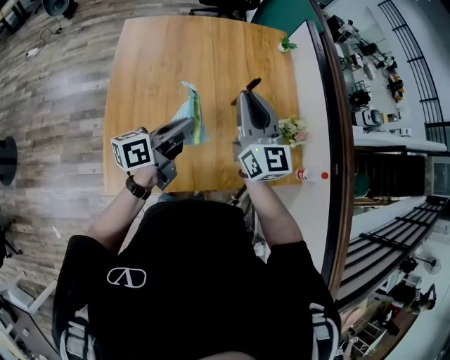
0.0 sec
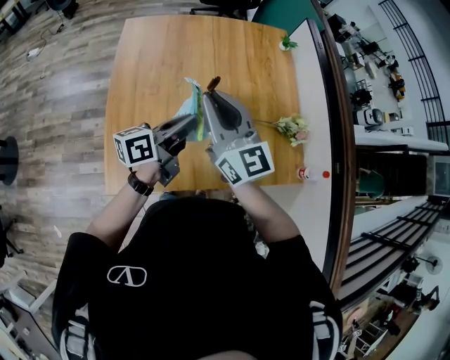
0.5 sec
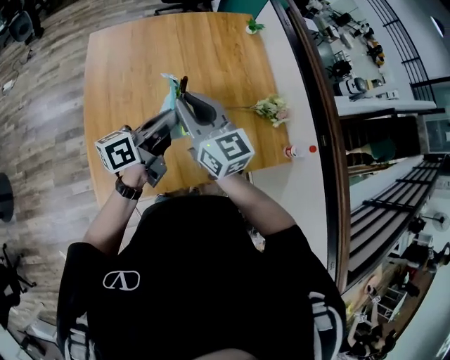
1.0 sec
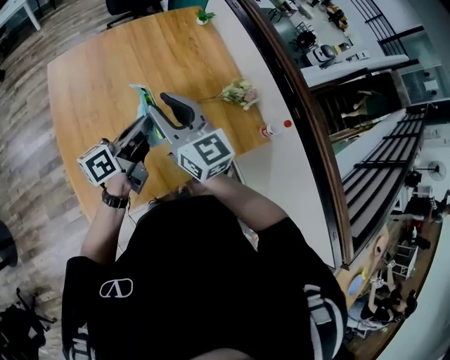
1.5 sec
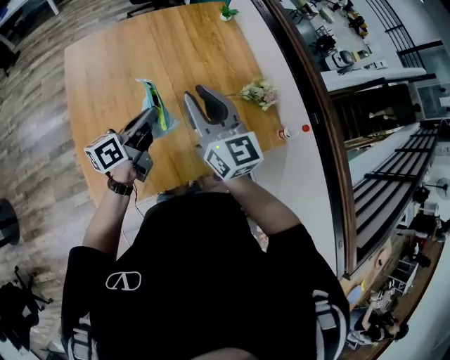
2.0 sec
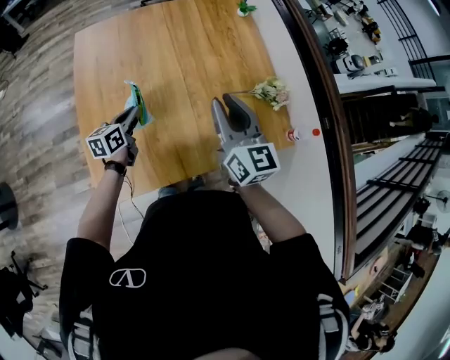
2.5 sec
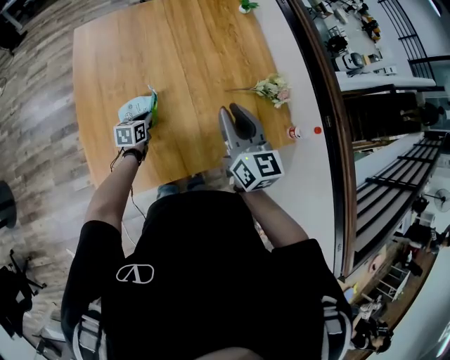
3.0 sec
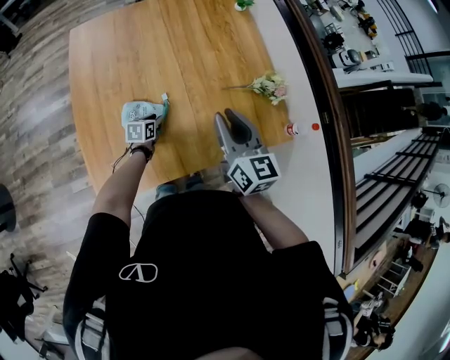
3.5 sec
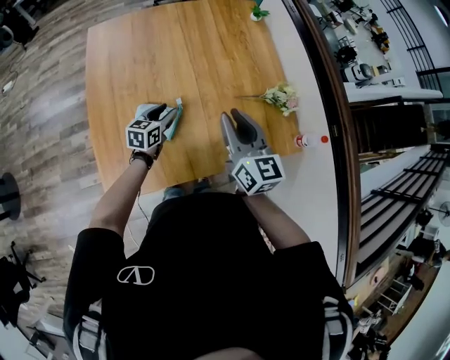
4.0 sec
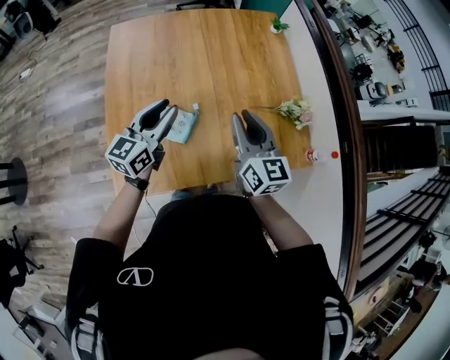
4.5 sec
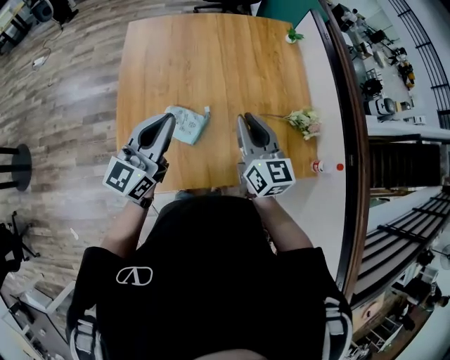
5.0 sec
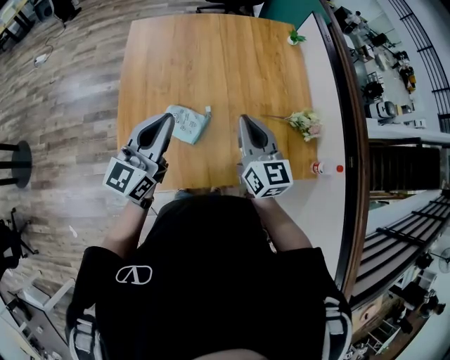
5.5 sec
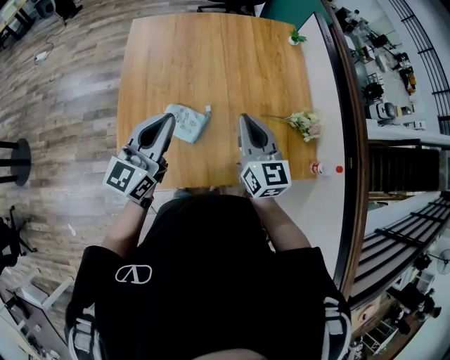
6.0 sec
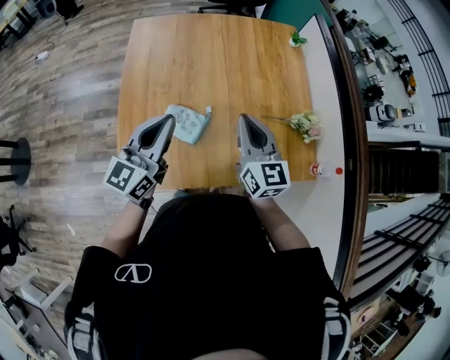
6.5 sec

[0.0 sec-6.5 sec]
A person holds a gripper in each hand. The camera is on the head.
0.0 sec to 2.0 sec: The right gripper reaches some 10 cm to the left, then returns.
2.0 sec to 4.5 sec: The right gripper is displaced downward by roughly 5 cm, while the left gripper is displaced to the left by about 5 cm, travels downward and back again, about 30 cm each way, and changes its angle by about 40 degrees.
4.5 sec to 6.5 sec: The left gripper heads upward and backward, covering about 10 cm.

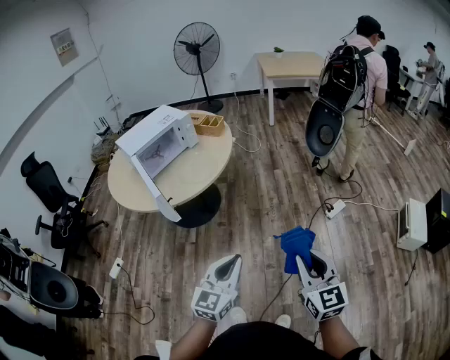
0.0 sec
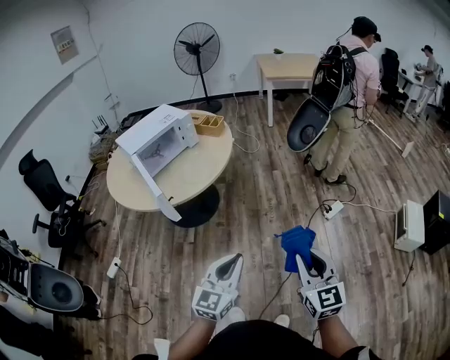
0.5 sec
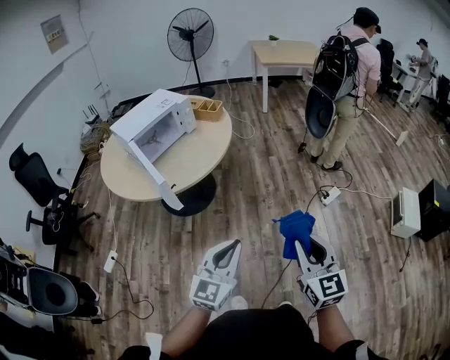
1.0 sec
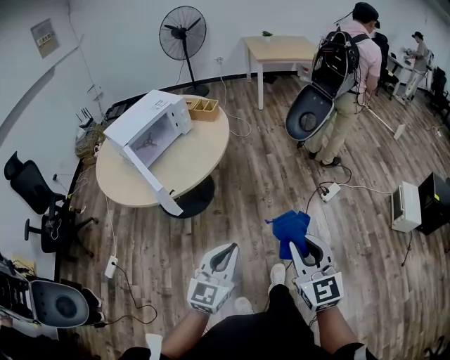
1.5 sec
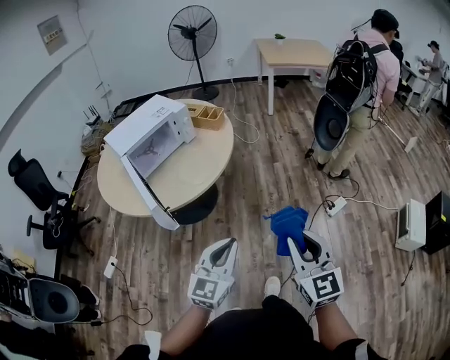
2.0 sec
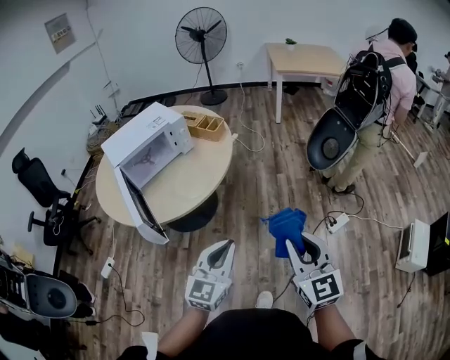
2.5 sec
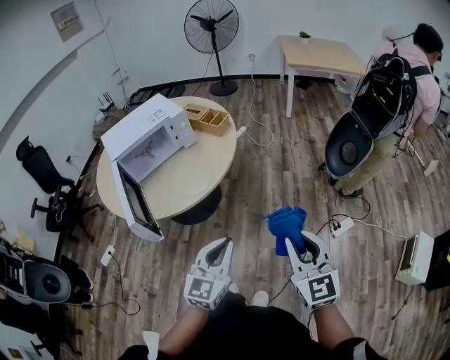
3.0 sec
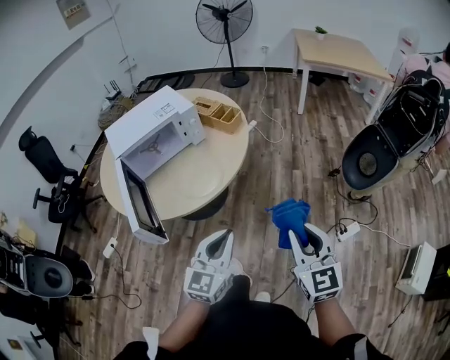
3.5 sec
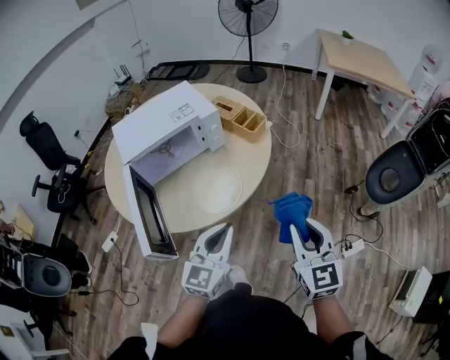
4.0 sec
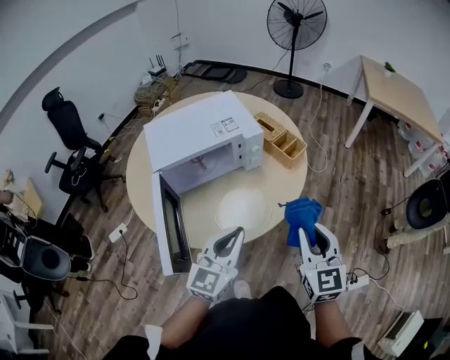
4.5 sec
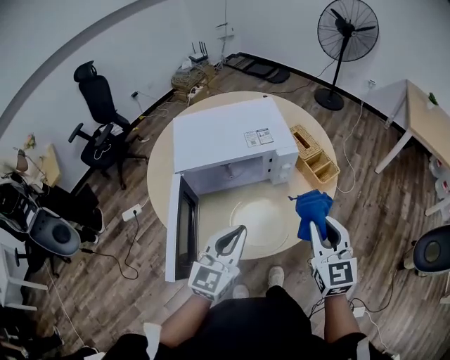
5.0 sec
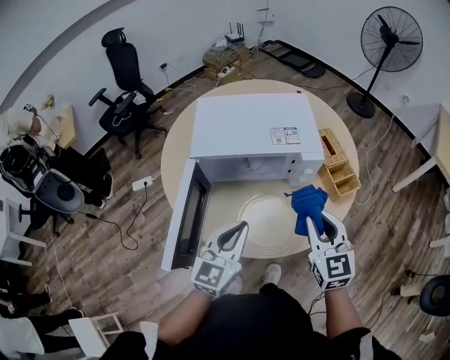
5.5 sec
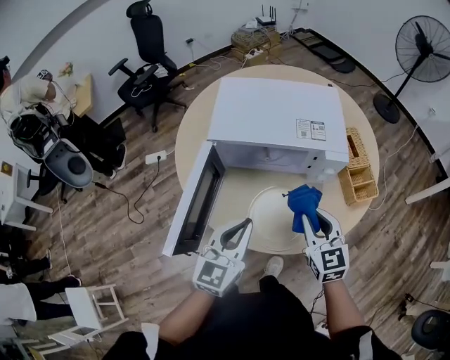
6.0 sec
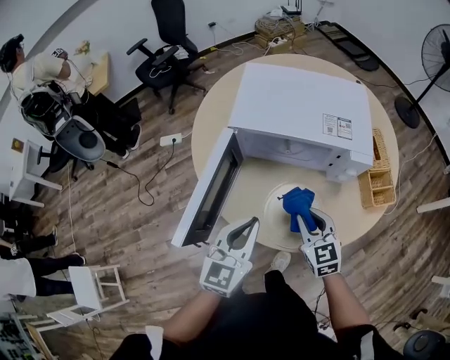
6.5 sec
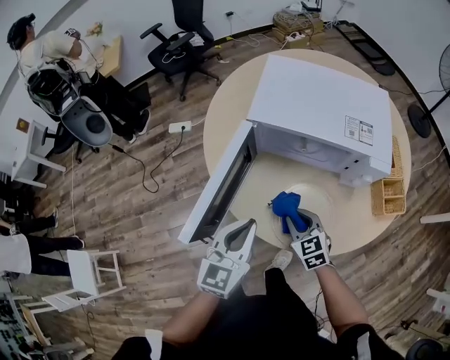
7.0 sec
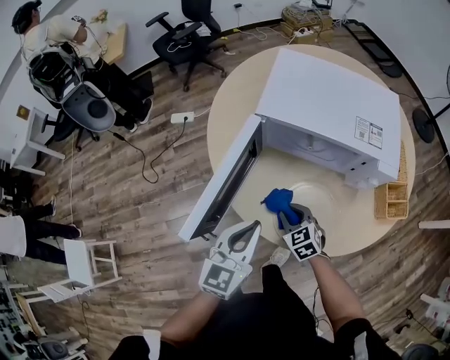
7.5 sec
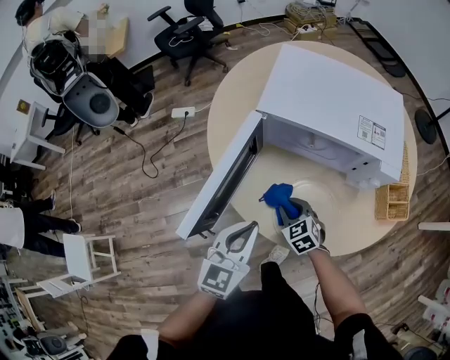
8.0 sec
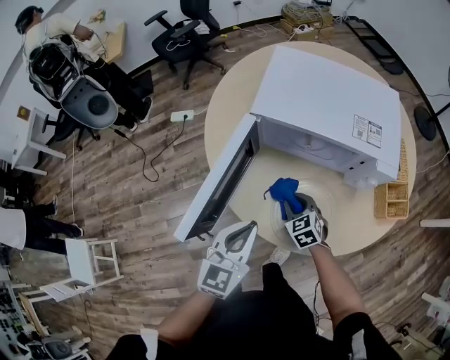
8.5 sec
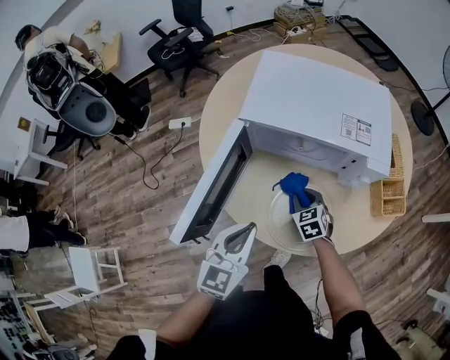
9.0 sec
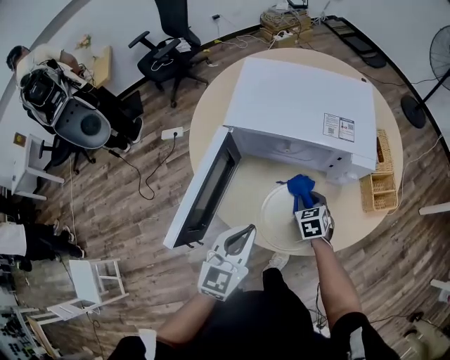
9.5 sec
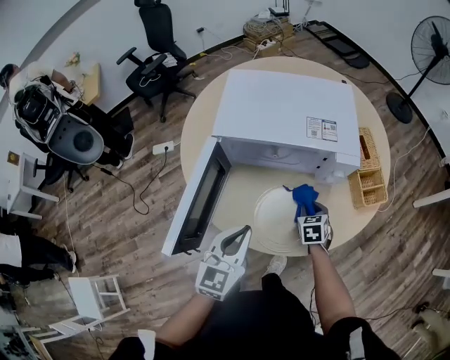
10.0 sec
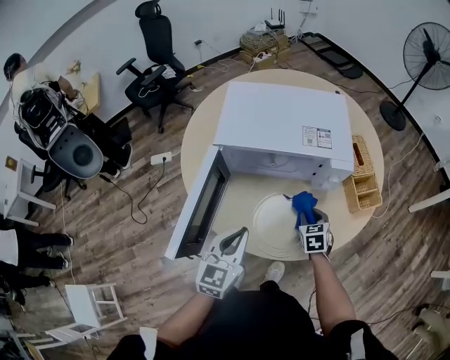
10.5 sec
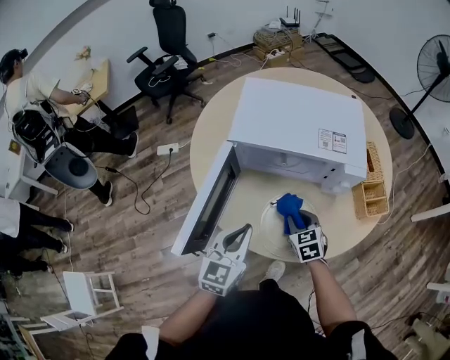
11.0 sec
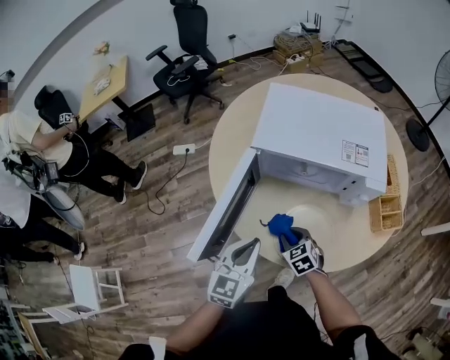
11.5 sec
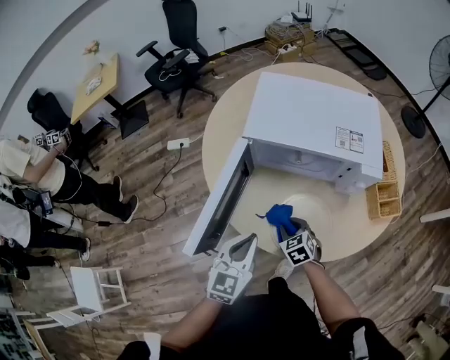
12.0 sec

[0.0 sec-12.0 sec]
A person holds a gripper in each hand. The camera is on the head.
0.0 sec to 2.0 sec: The two grippers go some 15 cm forward and to the left.
2.0 sec to 4.0 sec: Both grippers move forward, roughly 30 cm.
4.0 sec to 6.0 sec: The right gripper moves approximately 35 cm, and changes its angle by some 40 degrees, while the left gripper moves some 20 cm, and turns by approximately 40 degrees.
6.0 sec to 8.0 sec: The right gripper shifts approximately 25 cm downward and to the left, and swivels roughly 40 degrees. Meanwhile the left gripper is displaced to the left and downward by about 10 cm.
8.0 sec to 10.0 sec: The right gripper is displaced to the right by about 20 cm, and swivels approximately 40 degrees. Meanwhile the left gripper moves to the right, some 5 cm.
10.0 sec to 12.0 sec: The right gripper shifts about 15 cm to the left, and rotates some 30 degrees, while the left gripper is displaced to the left by approximately 5 cm.

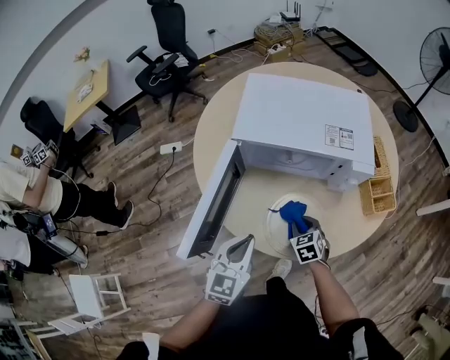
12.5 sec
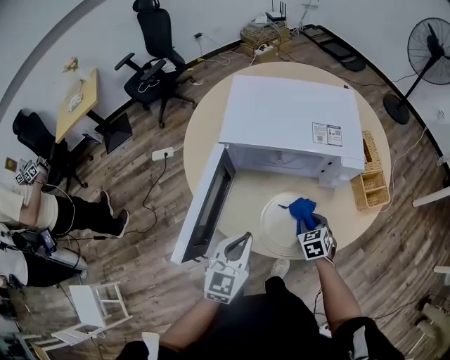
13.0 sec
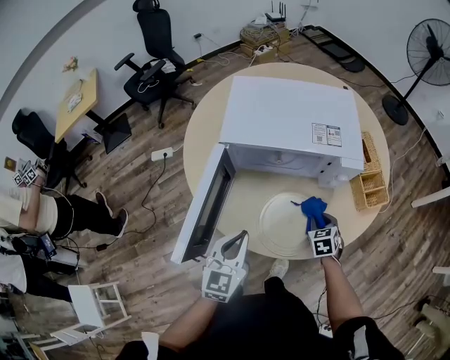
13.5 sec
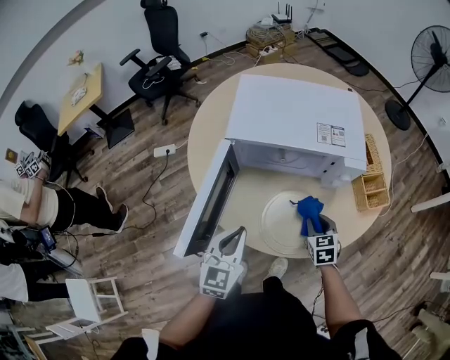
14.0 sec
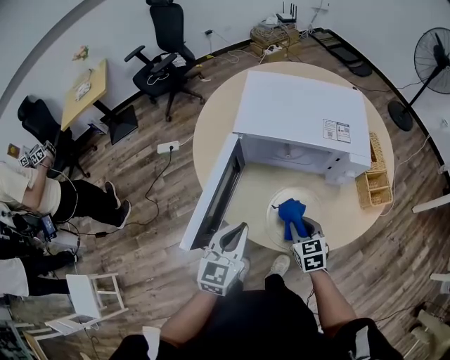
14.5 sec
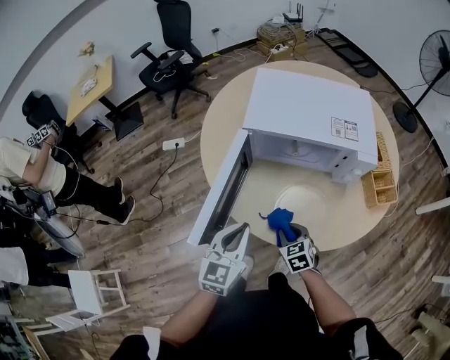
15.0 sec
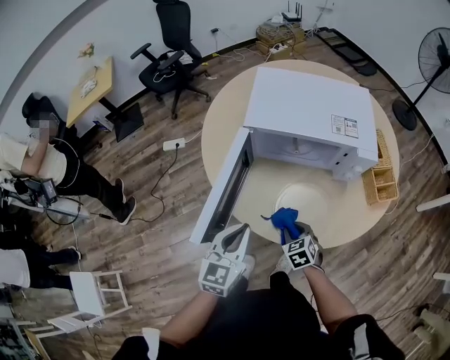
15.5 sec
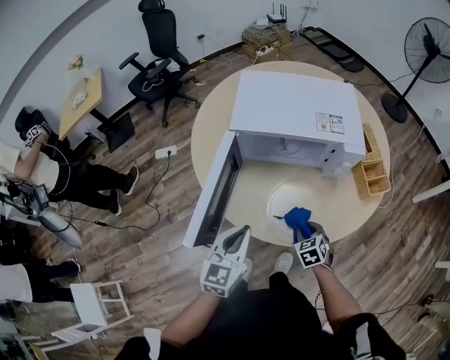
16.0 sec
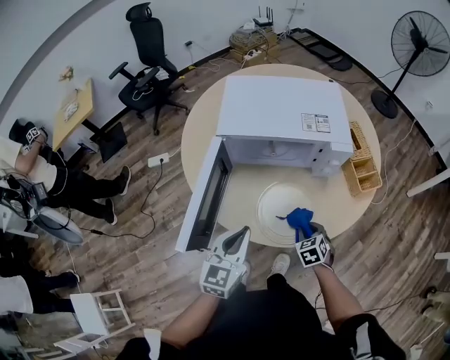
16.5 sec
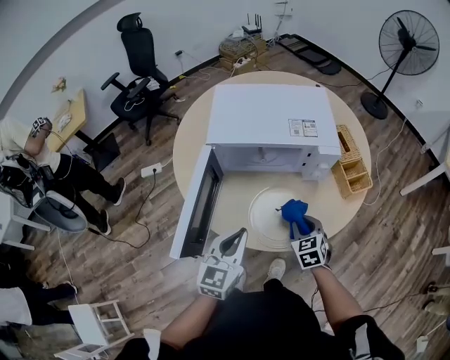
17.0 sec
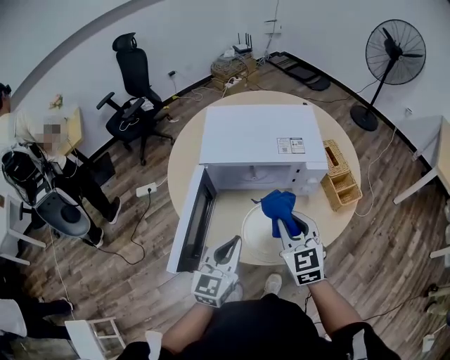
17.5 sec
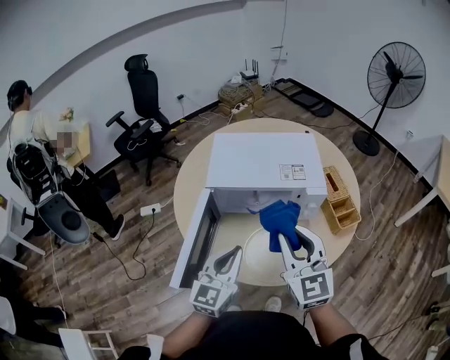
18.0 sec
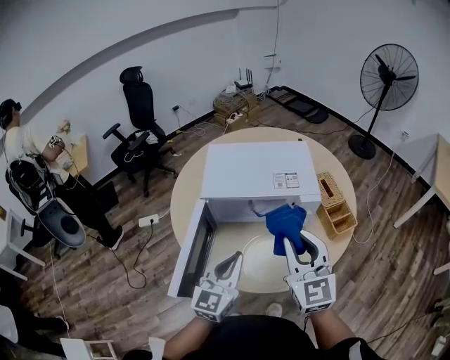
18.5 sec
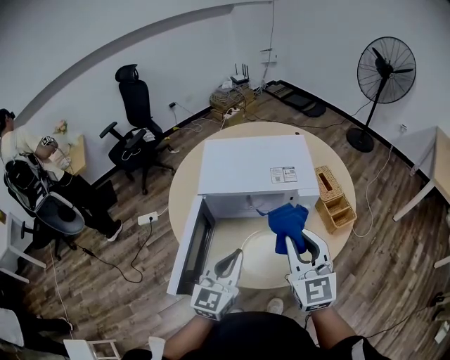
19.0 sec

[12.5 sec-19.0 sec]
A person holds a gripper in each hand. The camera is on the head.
12.5 sec to 14.5 sec: The right gripper moves upward, about 5 cm, and reaches about 10 cm to the right, then returns.
14.5 sec to 17.0 sec: The left gripper ends up approximately 5 cm from where it was. The right gripper goes some 5 cm to the right.
17.0 sec to 19.0 sec: The right gripper shifts roughly 30 cm upward, and points its fingers approximately 40 degrees further upward, while the left gripper is displaced upward by approximately 10 cm.

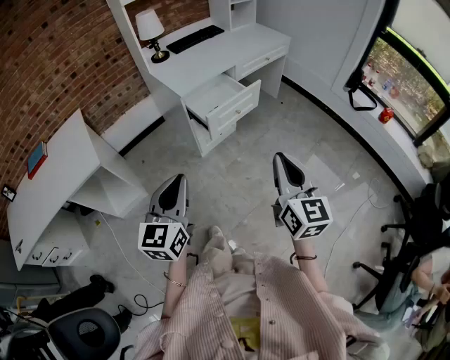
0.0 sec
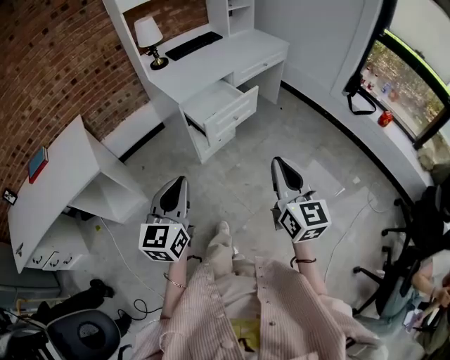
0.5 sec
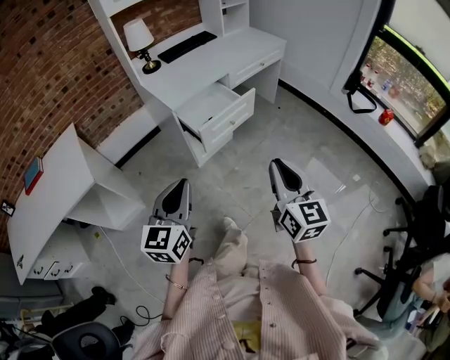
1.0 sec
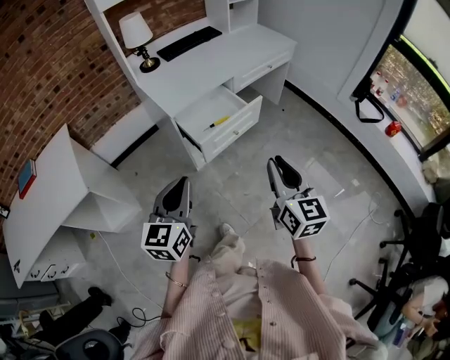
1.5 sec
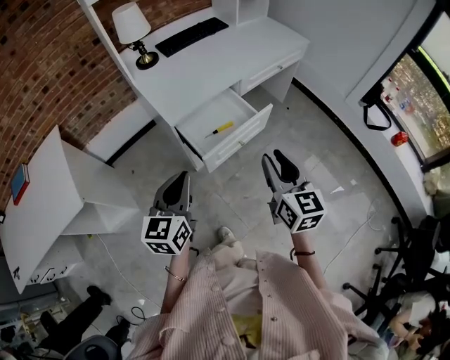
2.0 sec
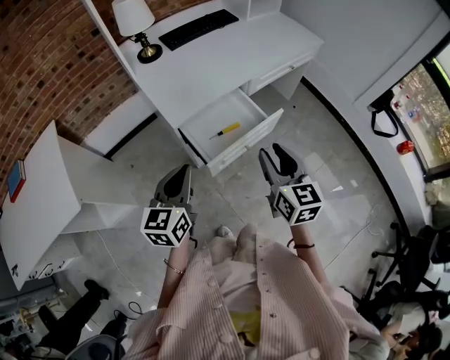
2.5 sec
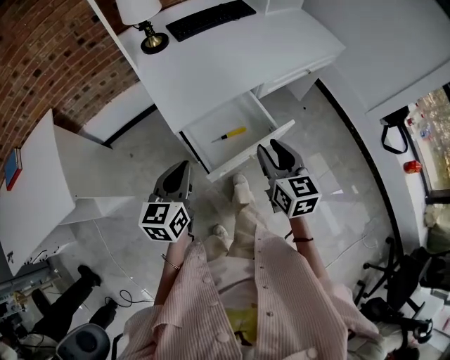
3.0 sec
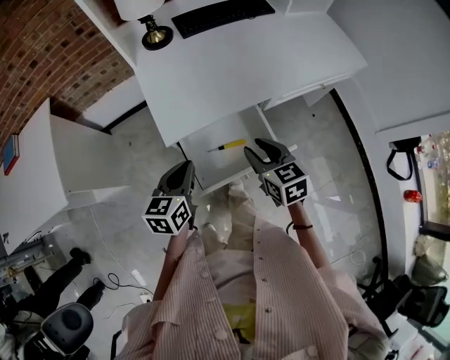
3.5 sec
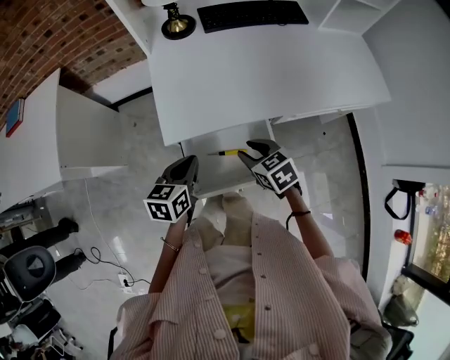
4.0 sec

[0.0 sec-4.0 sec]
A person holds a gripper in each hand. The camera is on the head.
0.0 sec to 2.0 sec: The two grippers go approximately 30 cm forward. The right gripper opens up.
2.0 sec to 4.0 sec: The right gripper changes place by some 40 cm, and tilts its fingers approximately 40 degrees downward; the left gripper shifts by about 30 cm, and changes its angle by some 30 degrees.
